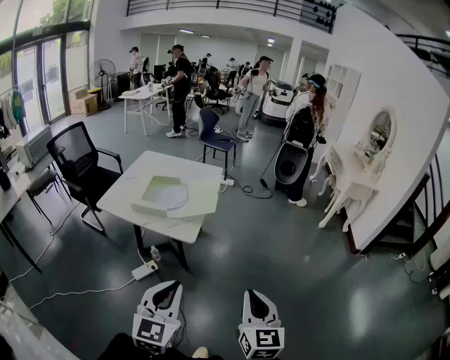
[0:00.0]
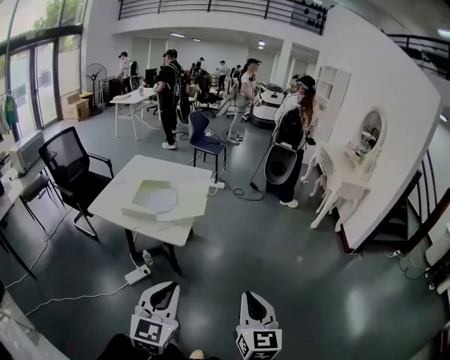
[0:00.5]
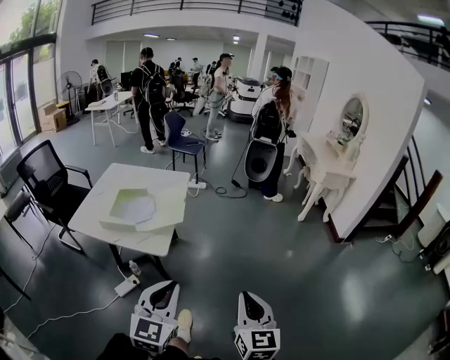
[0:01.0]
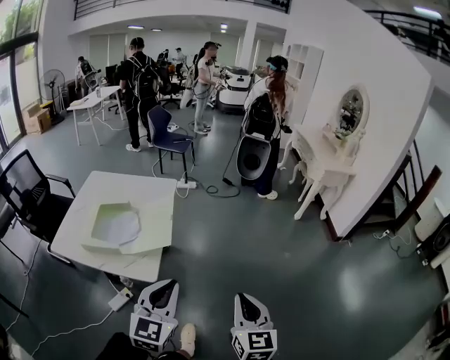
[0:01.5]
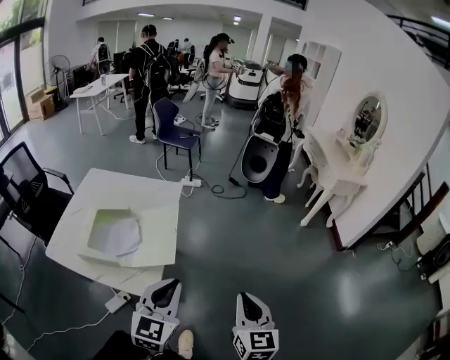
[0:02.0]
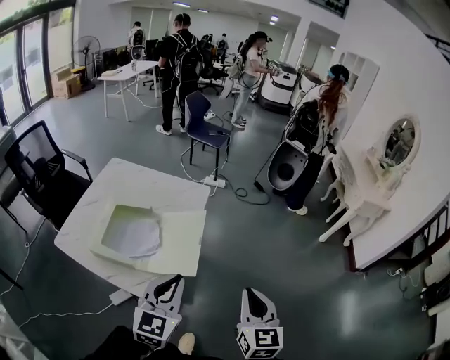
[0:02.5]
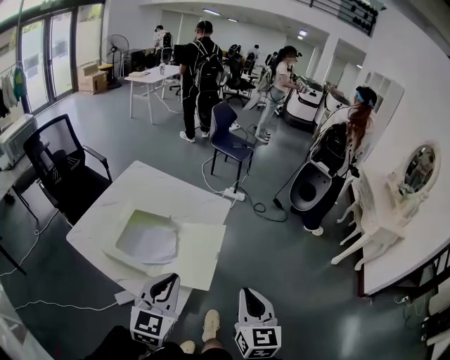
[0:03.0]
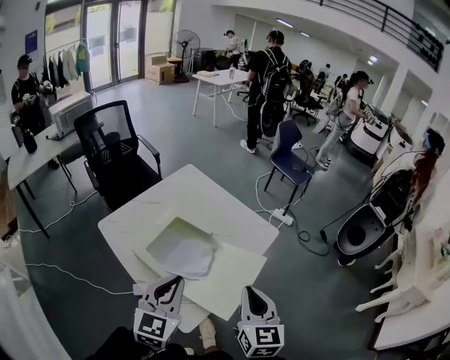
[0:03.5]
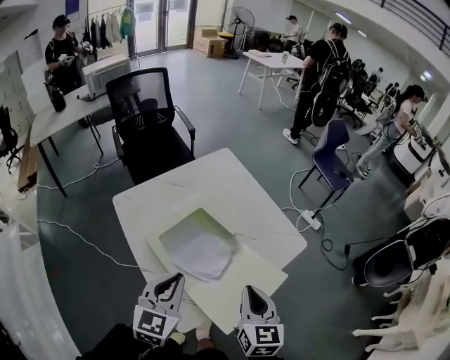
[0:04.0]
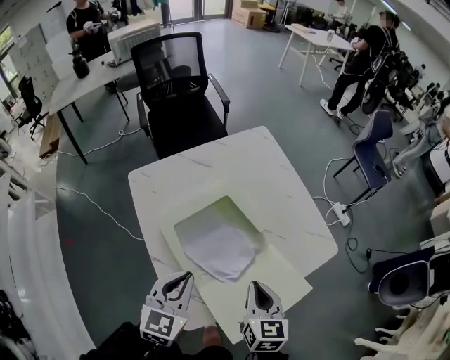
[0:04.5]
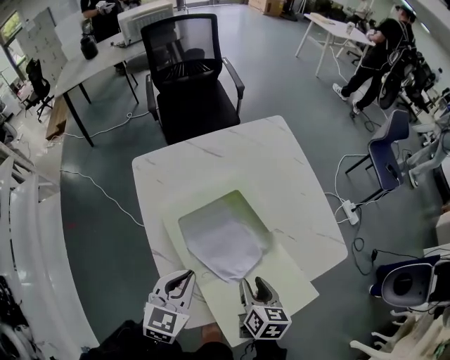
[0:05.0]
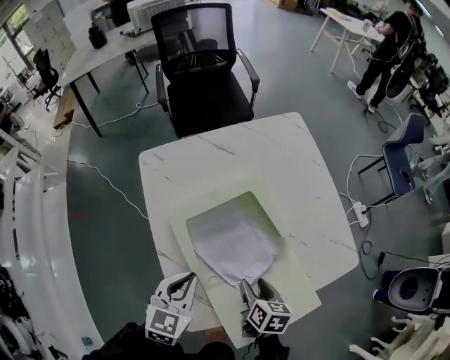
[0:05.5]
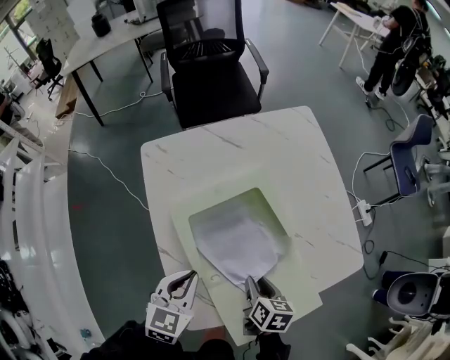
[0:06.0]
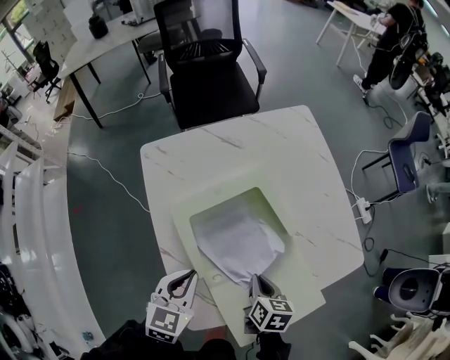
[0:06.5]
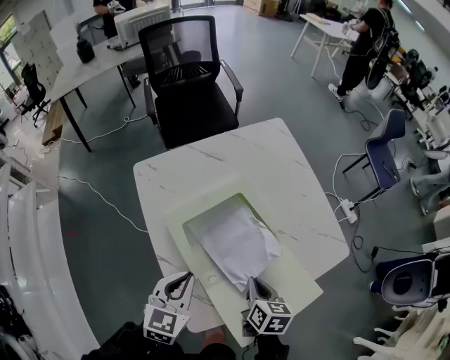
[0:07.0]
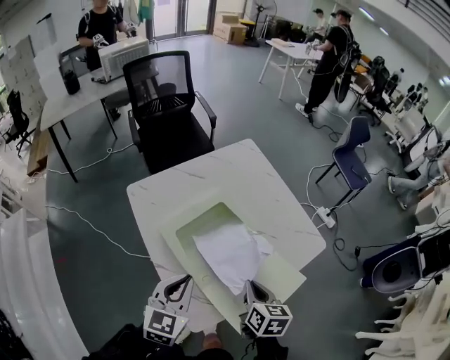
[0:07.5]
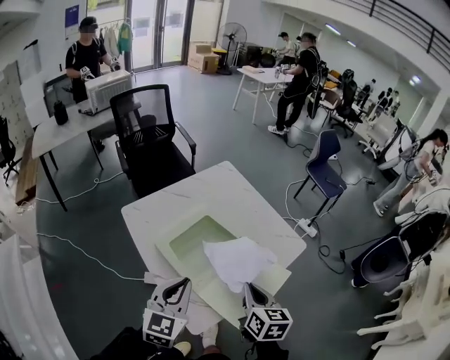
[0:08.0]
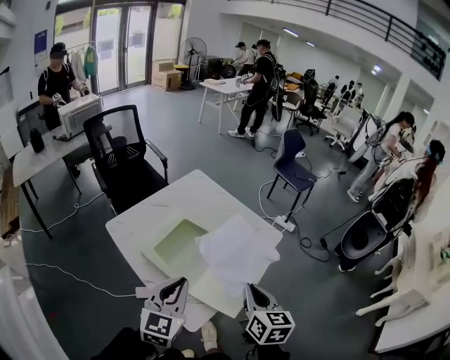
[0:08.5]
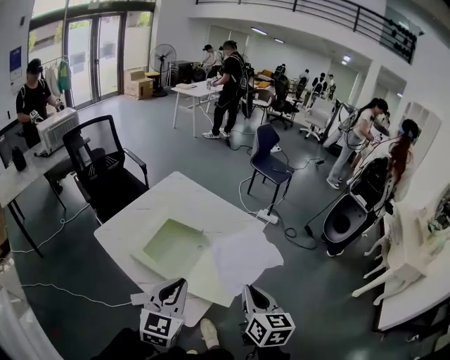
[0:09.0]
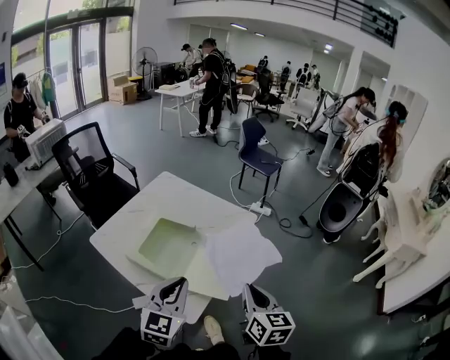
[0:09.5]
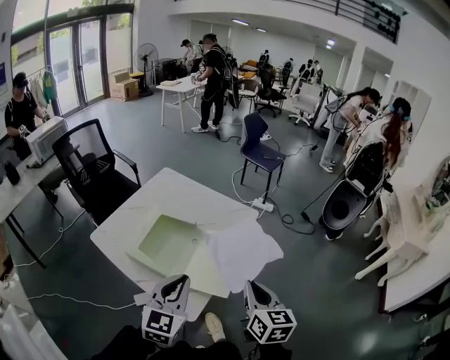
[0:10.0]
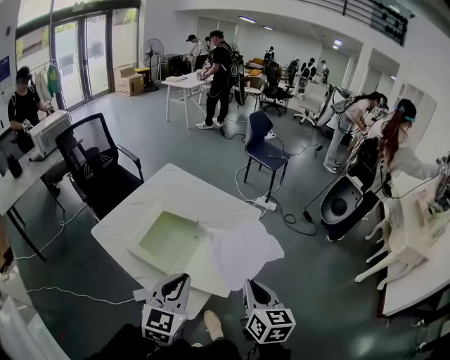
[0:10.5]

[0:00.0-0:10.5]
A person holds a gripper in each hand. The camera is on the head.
0:00.0 to 0:02.0: The pair of grippers is taken forward, approximately 40 cm.
0:02.0 to 0:04.0: The right gripper shifts by about 50 cm, and changes its angle by roughly 50 degrees; the left gripper changes place by approximately 40 cm, and changes its angle by some 50 degrees.
0:04.0 to 0:06.5: Both grippers move downward and forward, roughly 25 cm. The right gripper turns by roughly 40 degrees, and opens, then closes once more. Meanwhile the left gripper swivels roughly 20 degrees.
0:06.5 to 0:08.5: The grippers both shift upward by approximately 30 cm. The right gripper swivels approximately 40 degrees, while the left gripper rotates some 40 degrees.
0:08.5 to 0:10.5: The right gripper travels backward and to the right by some 10 cm. Meanwhile the left gripper shifts some 5 cm to the right.

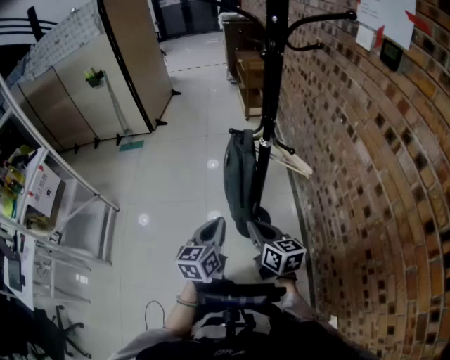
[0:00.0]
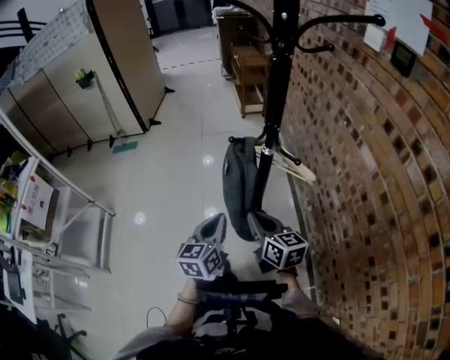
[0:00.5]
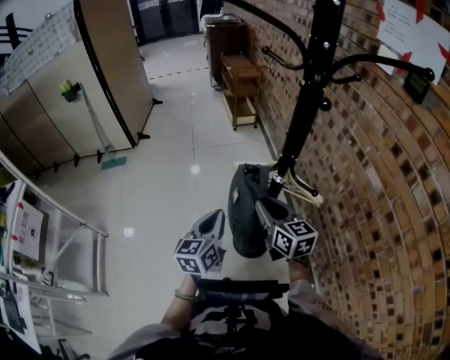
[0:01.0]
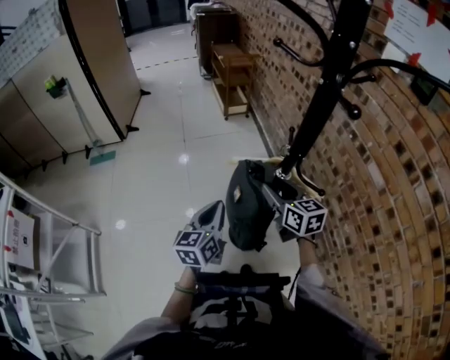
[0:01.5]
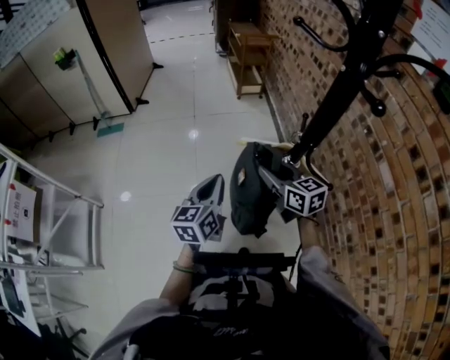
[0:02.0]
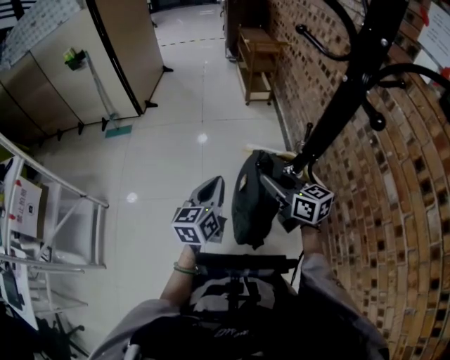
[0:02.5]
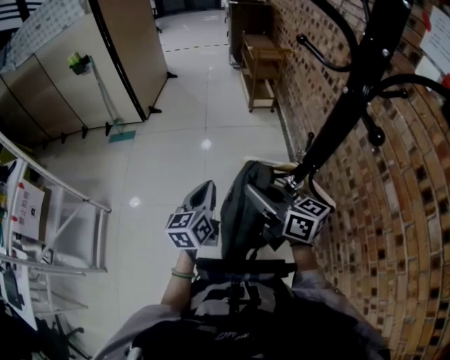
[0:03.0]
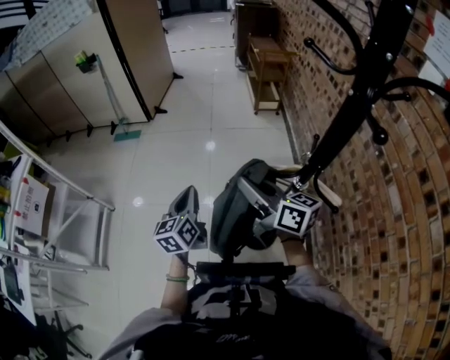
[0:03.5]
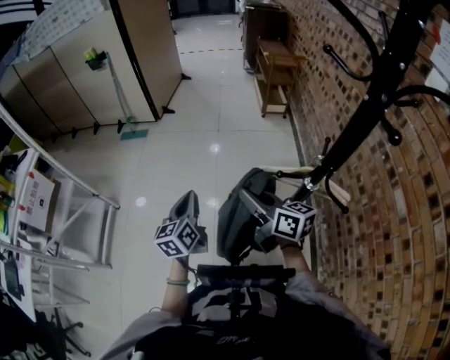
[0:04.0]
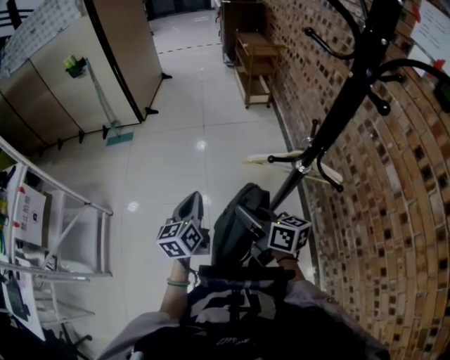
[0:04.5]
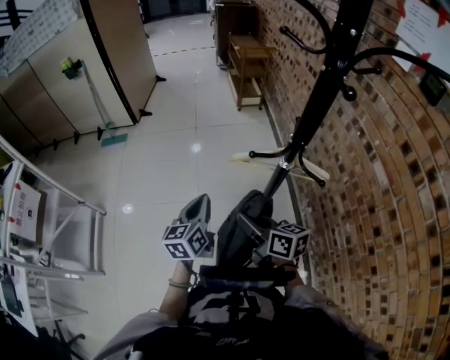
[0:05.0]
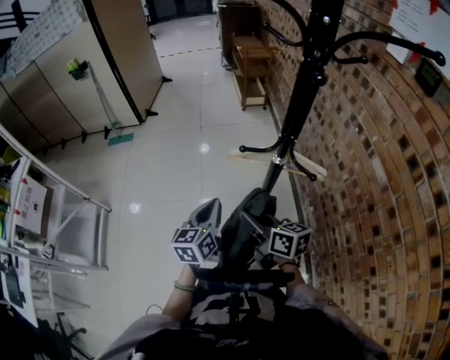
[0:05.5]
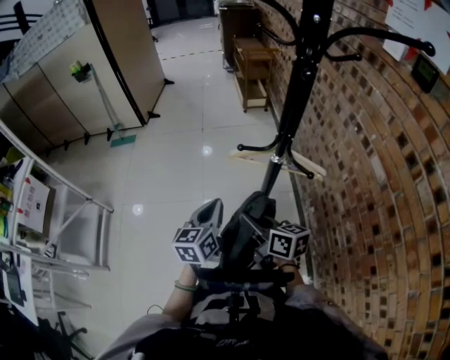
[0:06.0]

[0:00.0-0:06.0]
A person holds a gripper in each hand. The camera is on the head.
0:00.0 to 0:02.0: Both grippers move forward, about 25 cm. The right gripper opens.
0:02.0 to 0:04.0: Both grippers move to the left, approximately 15 cm. The right gripper changes its angle by roughly 30 degrees, and closes up. The left gripper turns by some 20 degrees.
0:04.0 to 0:06.0: The right gripper heads backward, downward and to the right, covering about 15 cm. Meanwhile the left gripper shifts some 20 cm to the right and backward.

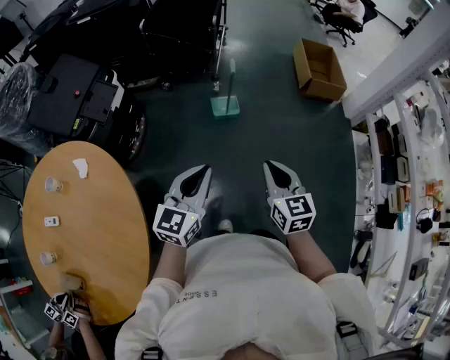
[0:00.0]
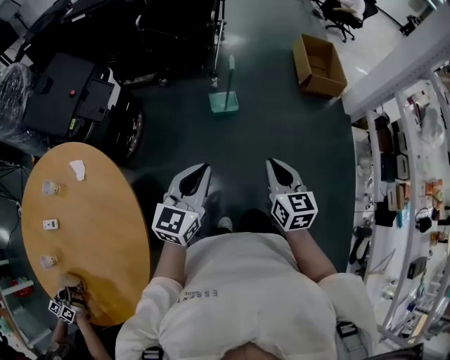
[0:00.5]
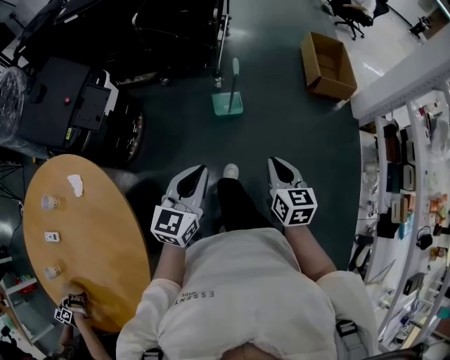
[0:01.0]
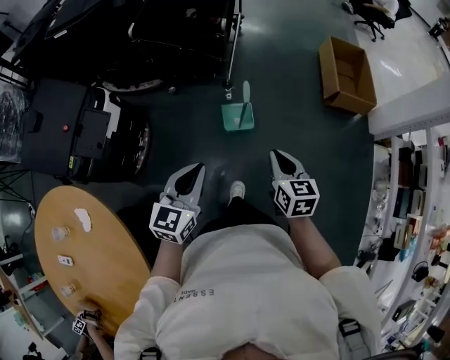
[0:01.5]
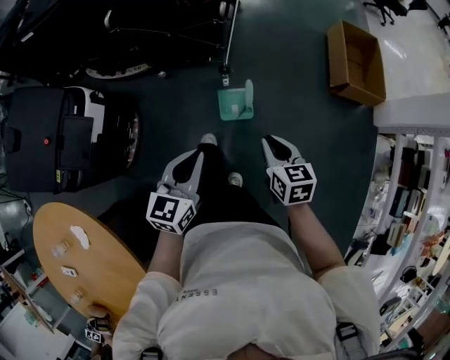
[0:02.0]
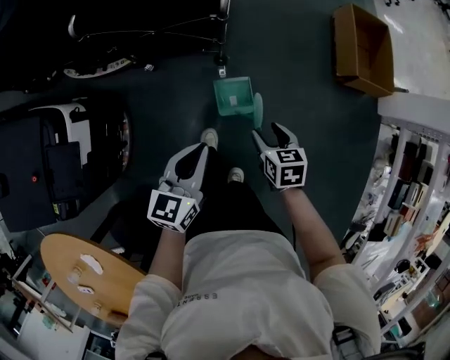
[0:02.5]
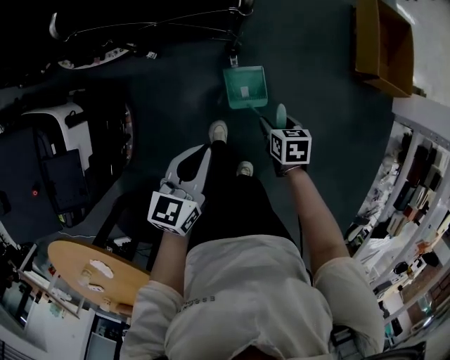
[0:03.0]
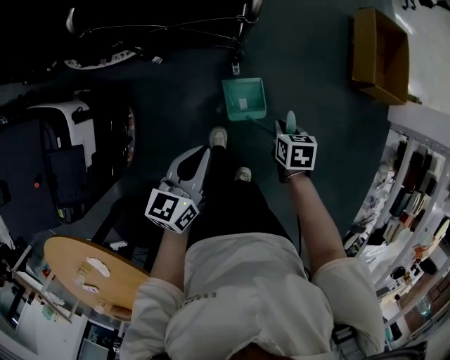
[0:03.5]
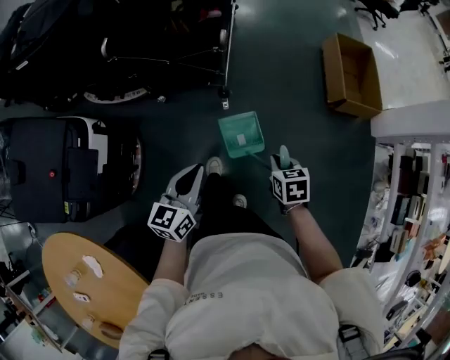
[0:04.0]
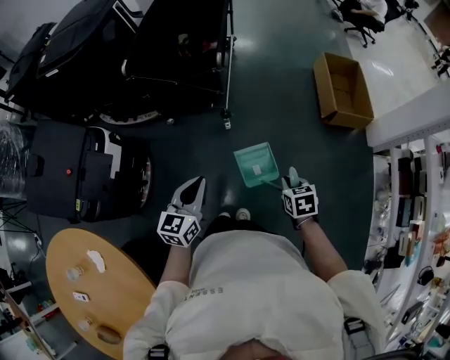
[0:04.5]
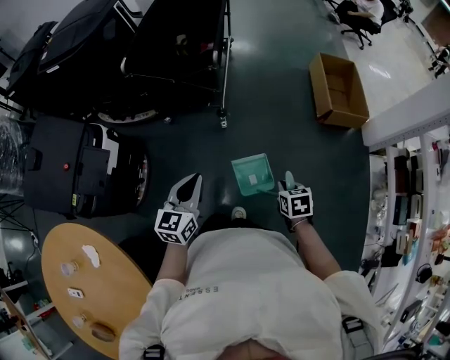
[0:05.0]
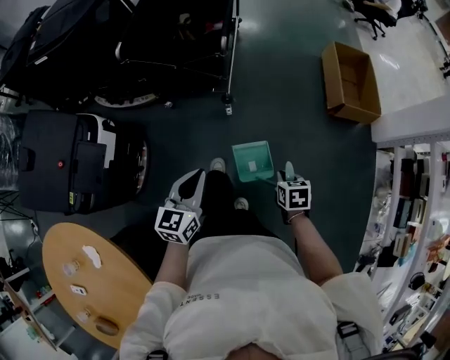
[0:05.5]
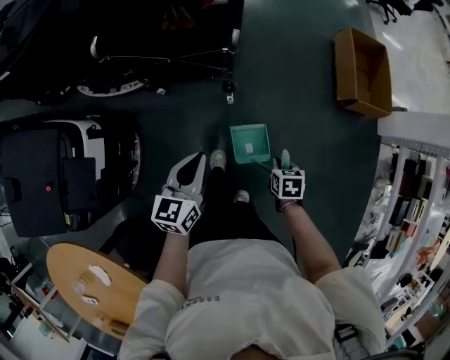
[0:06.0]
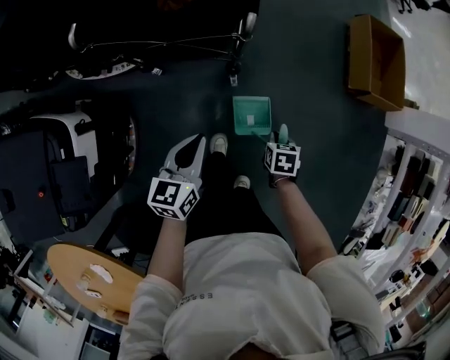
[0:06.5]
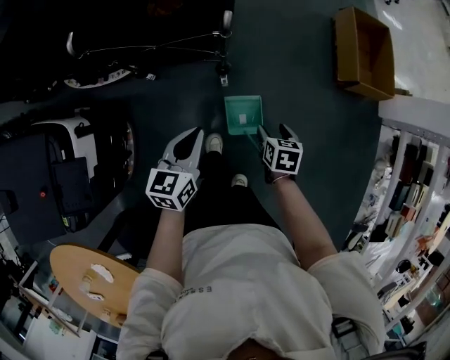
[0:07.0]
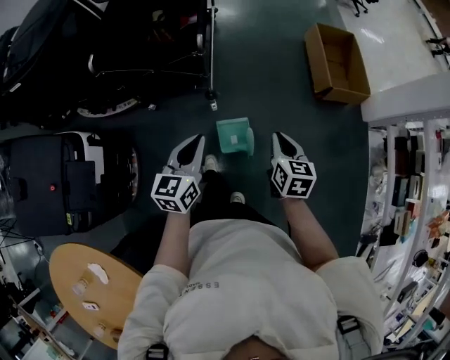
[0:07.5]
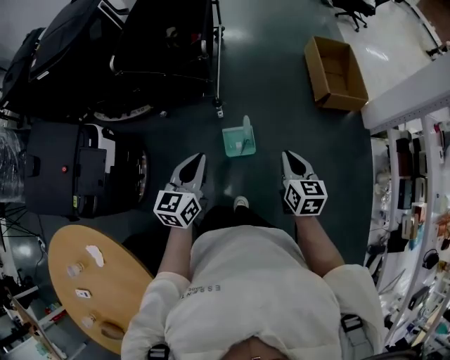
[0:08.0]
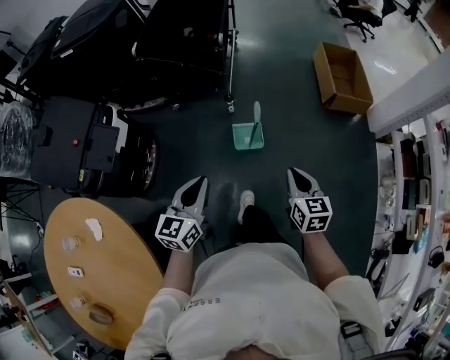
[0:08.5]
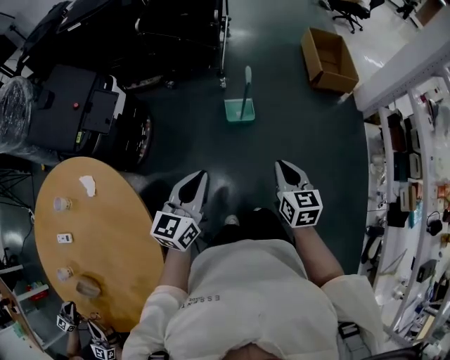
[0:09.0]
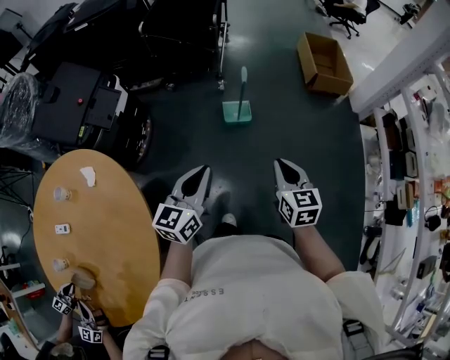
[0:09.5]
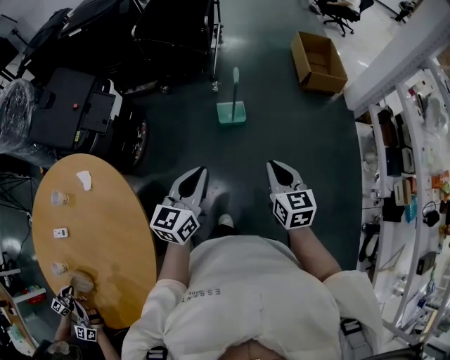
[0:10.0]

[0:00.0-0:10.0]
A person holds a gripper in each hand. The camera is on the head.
0:00.0 to 0:02.0: The pair of grippers is taken forward, approximately 50 cm. The right gripper changes its angle by roughly 20 degrees.
0:02.0 to 0:04.0: The left gripper shifts some 5 cm forward. The right gripper reaches about 25 cm downward, then returns, and opens, then closes again.
0:04.0 to 0:06.0: The right gripper is displaced downward by roughly 10 cm, and moves approximately 15 cm backward and comes back. Meanwhile the left gripper travels forward by roughly 10 cm.
0:06.0 to 0:08.0: The right gripper heads upward, backward and to the right, covering approximately 30 cm, points its fingers about 40 degrees further upward, and opens and closes again, while the left gripper heads backward, to the right and upward, covering about 20 cm.
0:08.0 to 0:10.0: The two grippers go about 40 cm backward.
